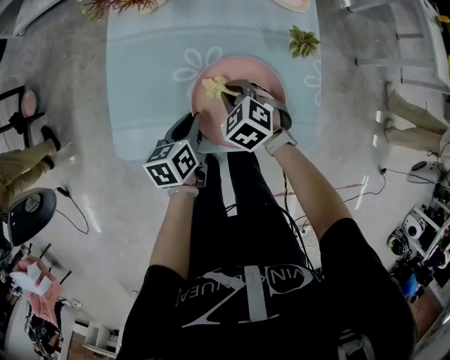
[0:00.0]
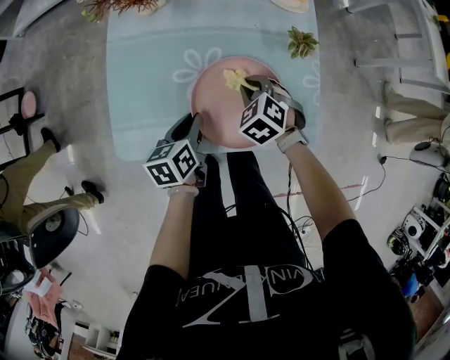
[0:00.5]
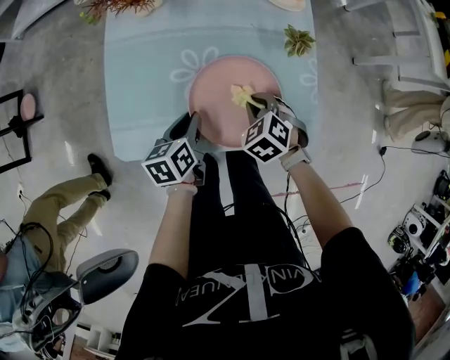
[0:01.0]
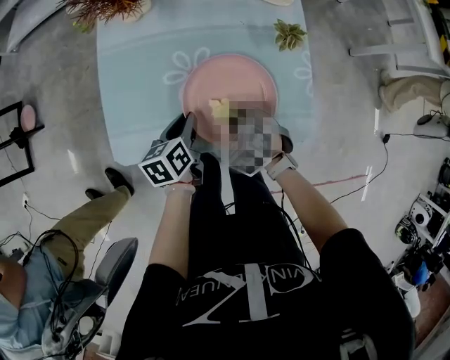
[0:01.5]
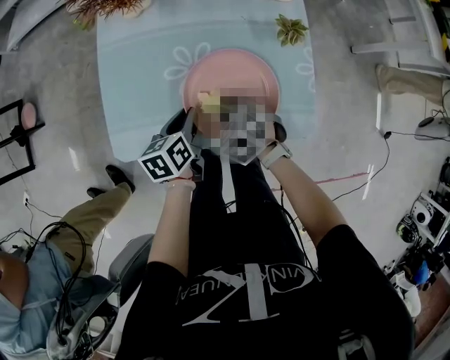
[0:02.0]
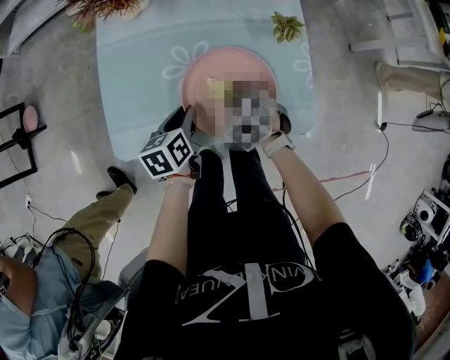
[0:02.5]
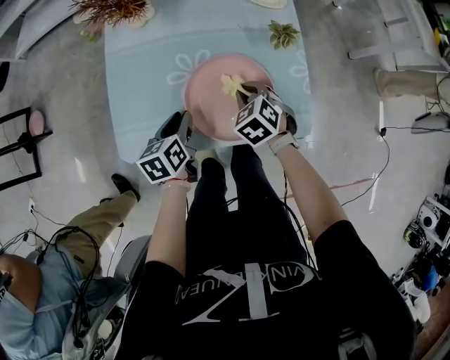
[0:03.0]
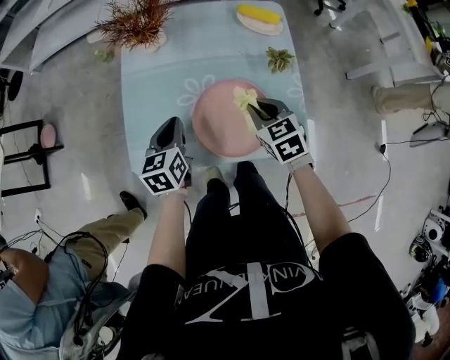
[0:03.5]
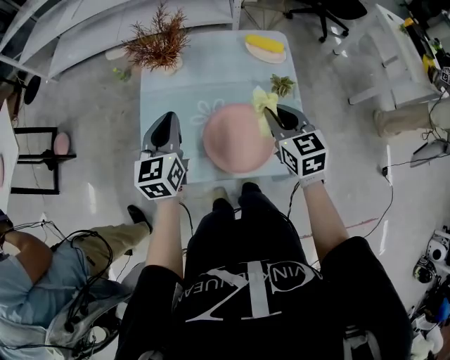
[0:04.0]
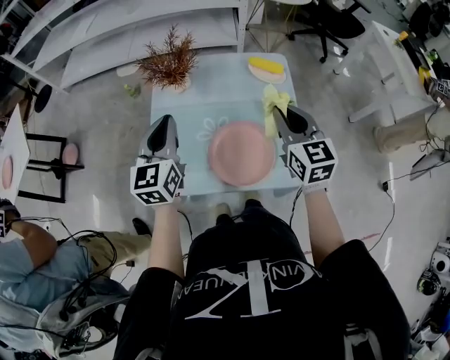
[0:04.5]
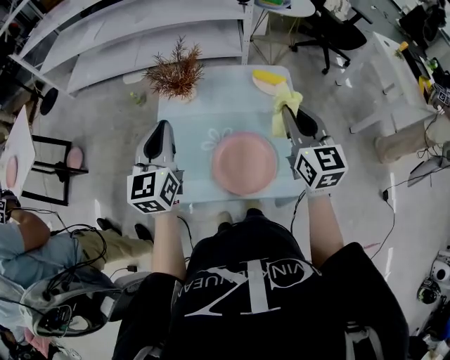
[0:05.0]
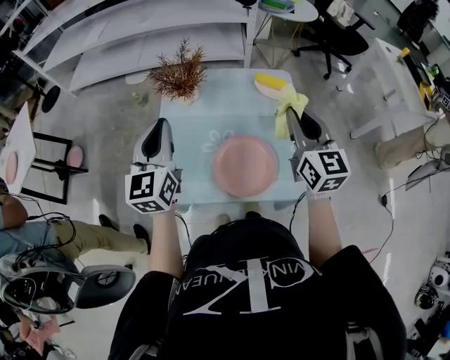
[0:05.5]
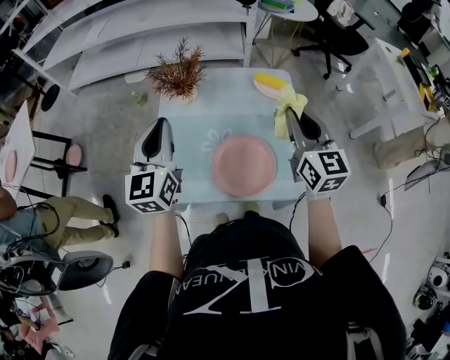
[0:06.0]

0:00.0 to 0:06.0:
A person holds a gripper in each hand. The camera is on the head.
0:00.0 to 0:02.0: The right gripper goes roughly 5 cm backward.
0:02.0 to 0:04.0: The right gripper shifts roughly 25 cm upward and to the right, and tips its fingers upward by roughly 40 degrees. Meanwhile the left gripper heads upward, covering about 25 cm, and turns by about 40 degrees.
0:04.0 to 0:06.0: Both grippers travel together upward, roughly 15 cm. The right gripper turns by some 20 degrees.

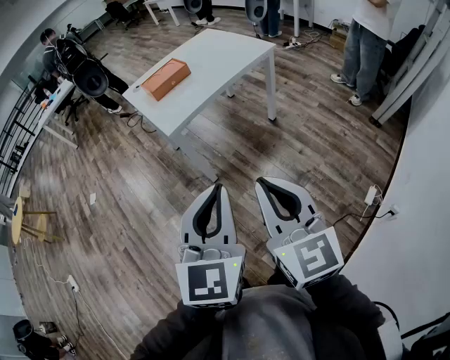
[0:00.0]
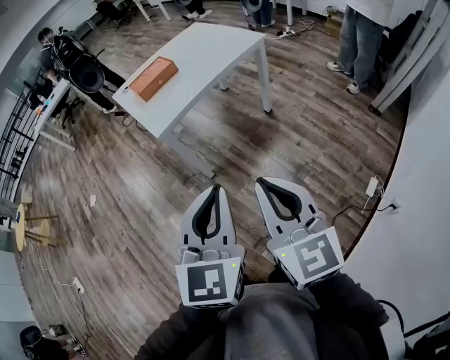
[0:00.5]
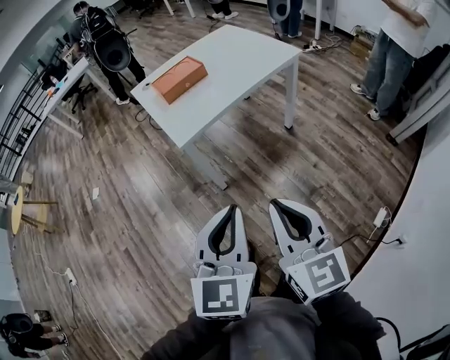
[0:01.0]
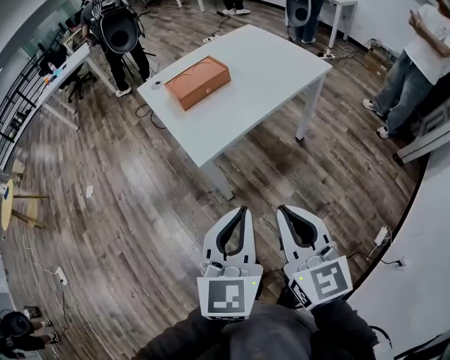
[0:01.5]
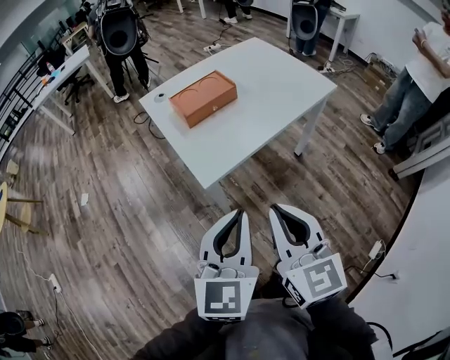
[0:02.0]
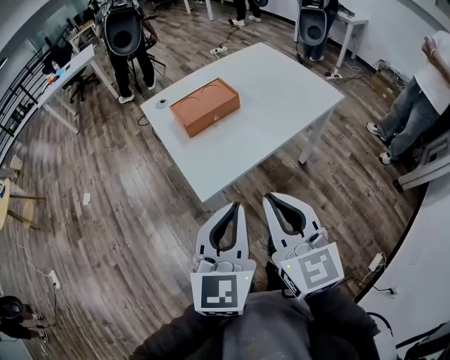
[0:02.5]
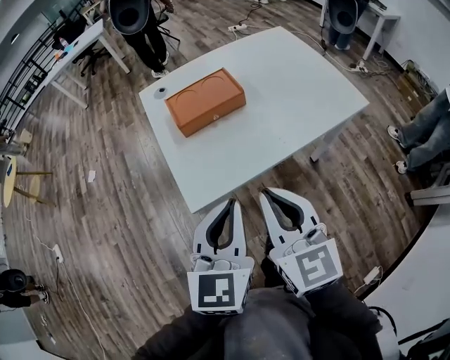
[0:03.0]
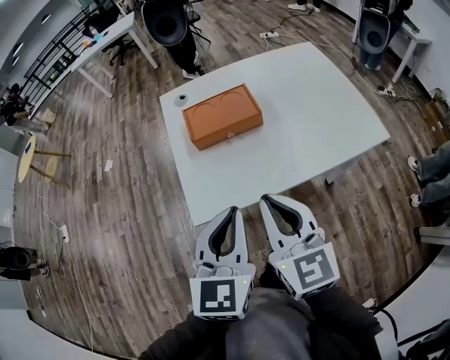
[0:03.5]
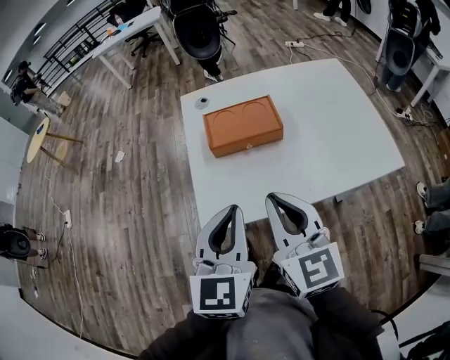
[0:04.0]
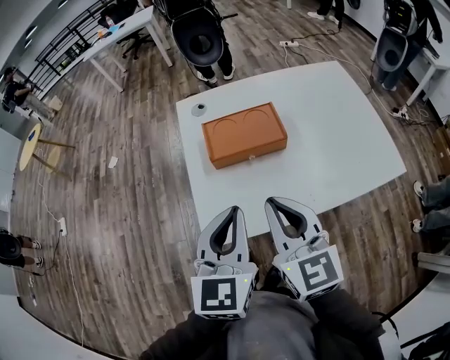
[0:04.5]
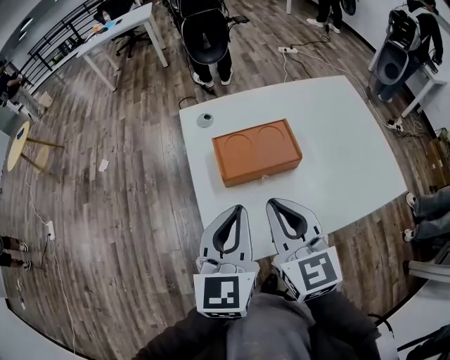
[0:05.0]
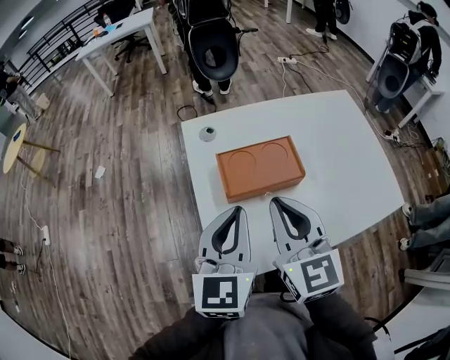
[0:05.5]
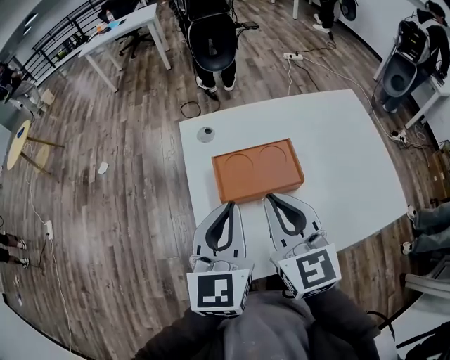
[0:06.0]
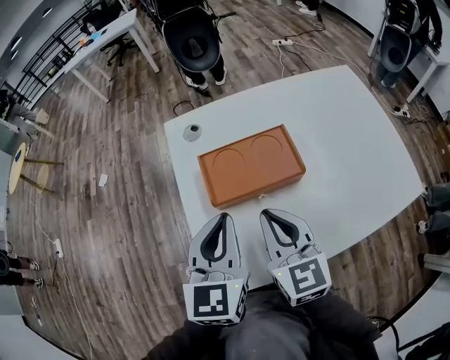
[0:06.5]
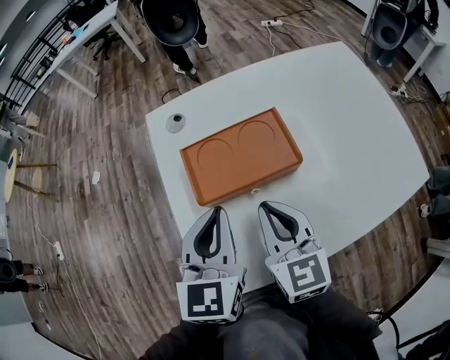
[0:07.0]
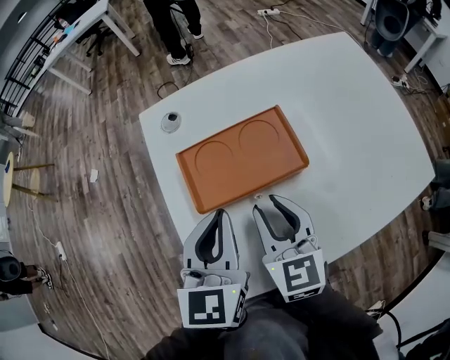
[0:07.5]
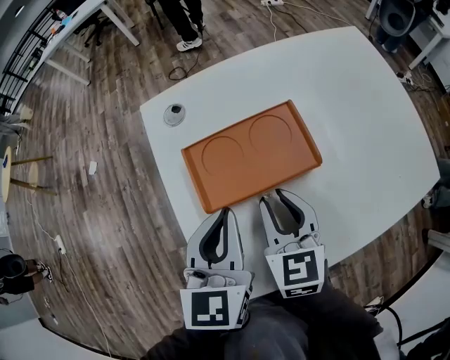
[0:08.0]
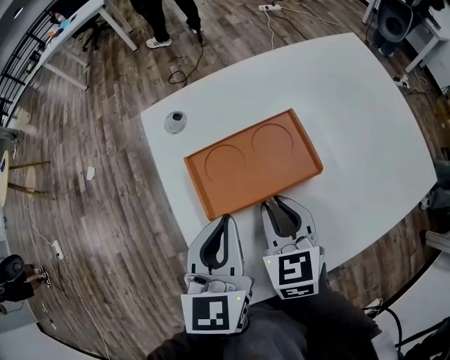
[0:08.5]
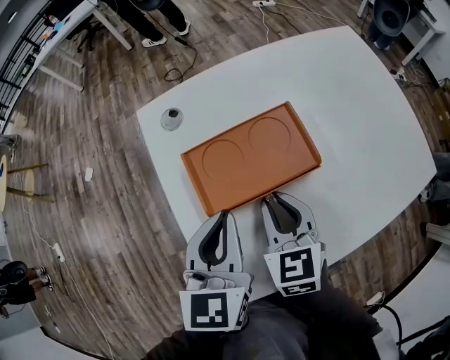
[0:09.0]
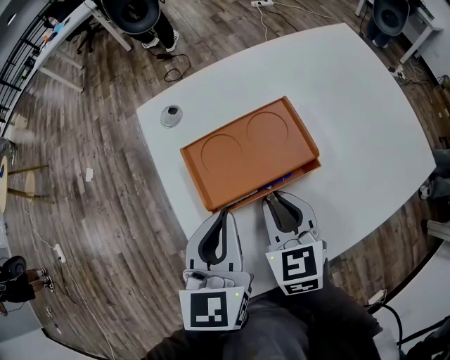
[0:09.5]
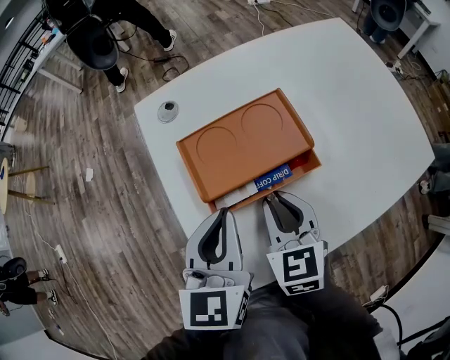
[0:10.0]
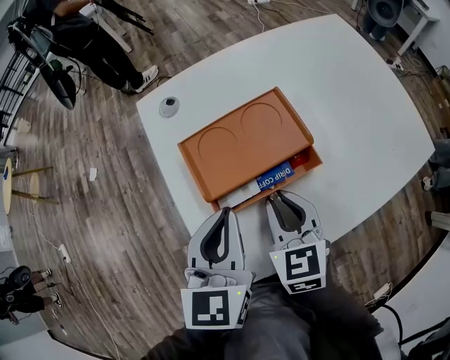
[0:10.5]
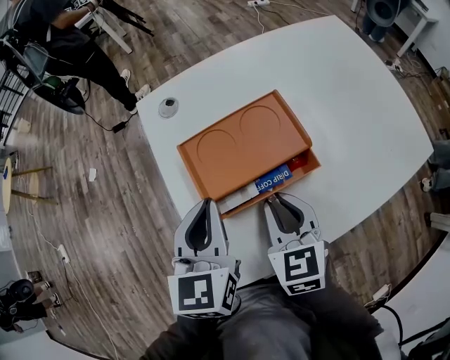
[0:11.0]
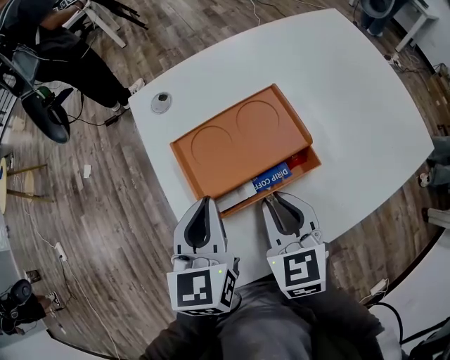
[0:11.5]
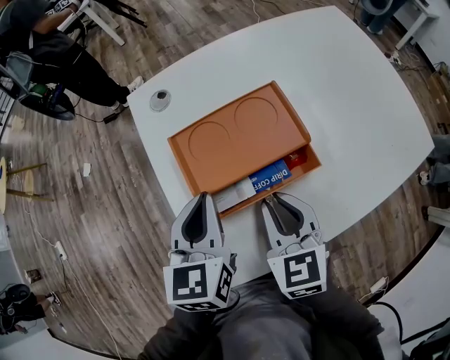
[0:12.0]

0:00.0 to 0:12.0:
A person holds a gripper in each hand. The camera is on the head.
0:00.0 to 0:02.0: The left gripper moves forward, some 25 cm. Meanwhile the right gripper goes approximately 30 cm forward and to the left.
0:02.0 to 0:04.0: The right gripper moves approximately 25 cm, and swivels some 30 degrees; the left gripper ends up about 20 cm from where it was, and changes its angle by some 30 degrees.
0:04.0 to 0:06.0: Both grippers travel together forward, some 20 cm.
0:06.0 to 0:08.0: The left gripper travels downward by approximately 10 cm; the right gripper heads downward, covering about 20 cm, rotates about 20 degrees, and opens.
0:08.0 to 0:10.0: The grippers move only a little.
0:10.0 to 0:12.0: The grippers stay close to where they were, moving slightly.

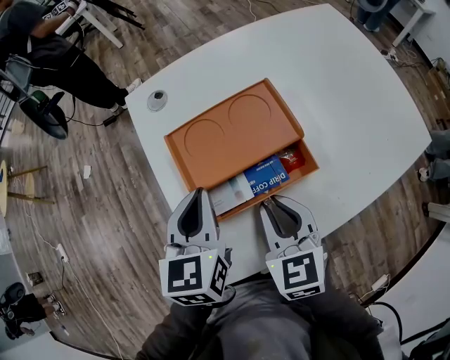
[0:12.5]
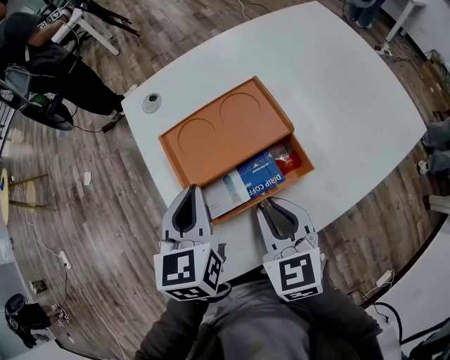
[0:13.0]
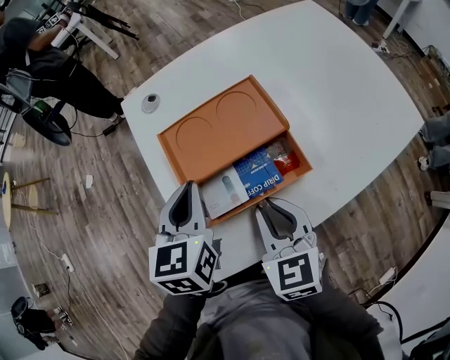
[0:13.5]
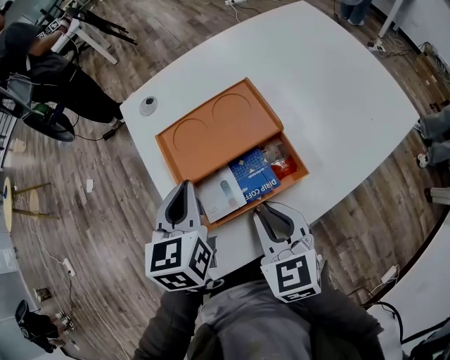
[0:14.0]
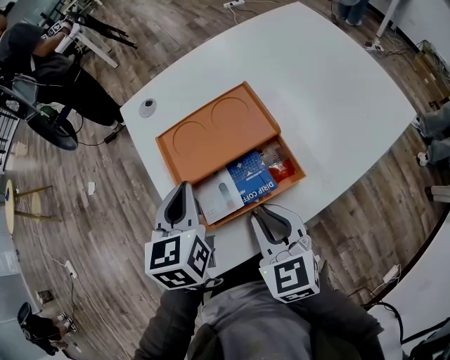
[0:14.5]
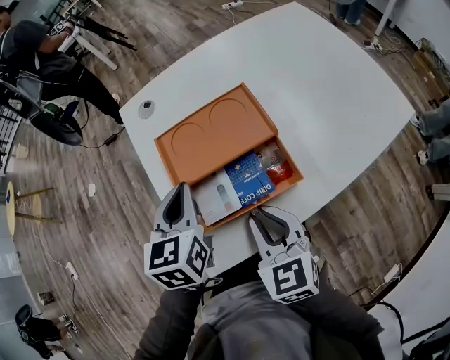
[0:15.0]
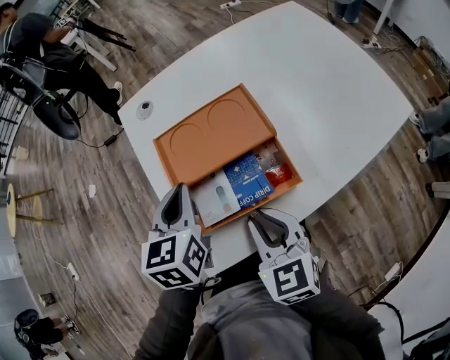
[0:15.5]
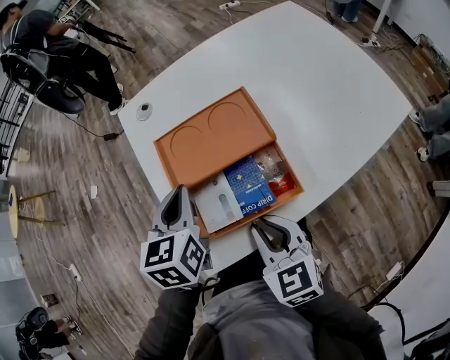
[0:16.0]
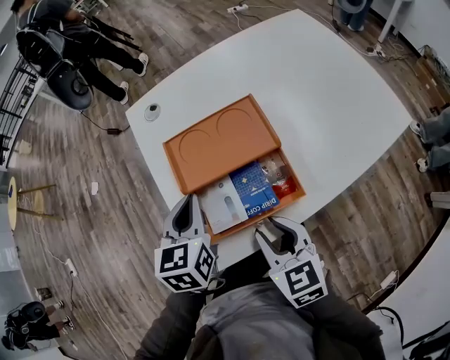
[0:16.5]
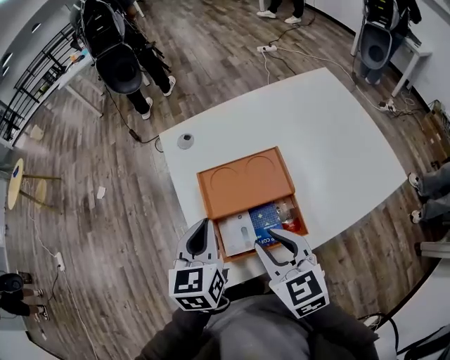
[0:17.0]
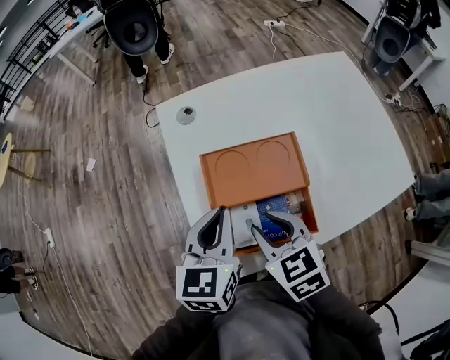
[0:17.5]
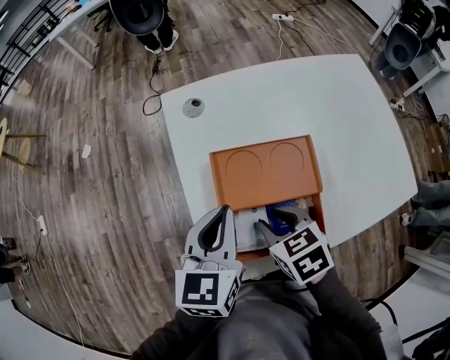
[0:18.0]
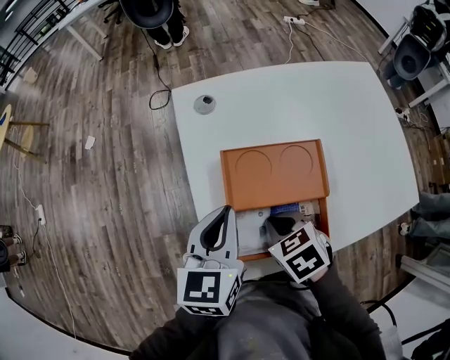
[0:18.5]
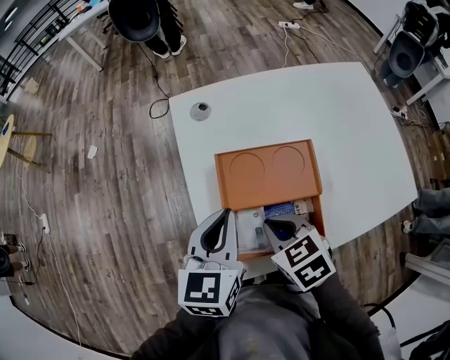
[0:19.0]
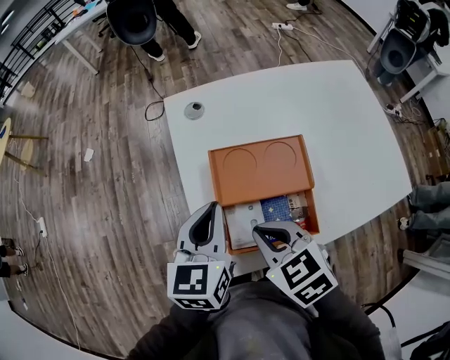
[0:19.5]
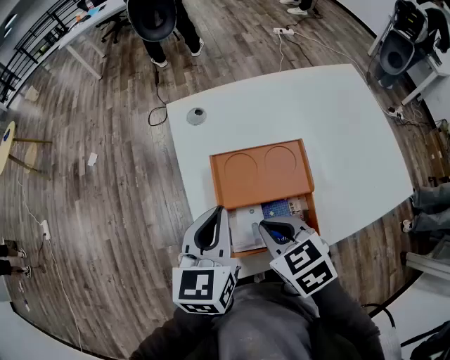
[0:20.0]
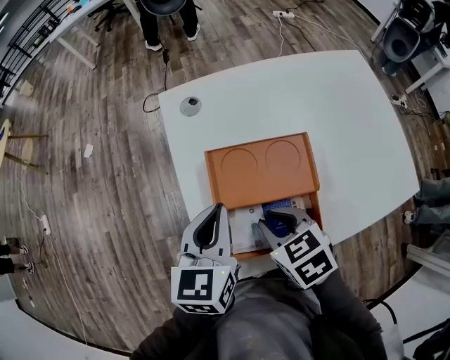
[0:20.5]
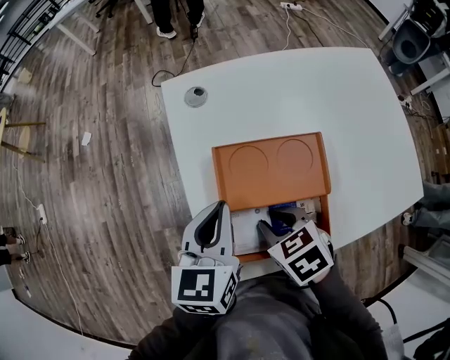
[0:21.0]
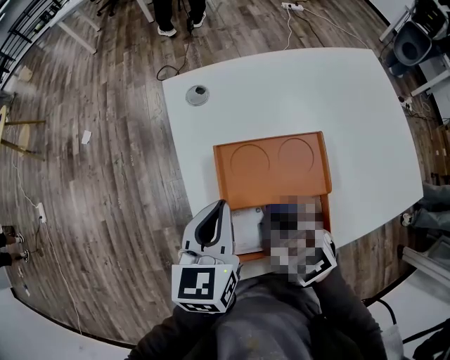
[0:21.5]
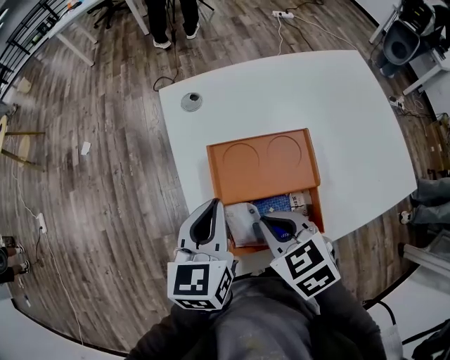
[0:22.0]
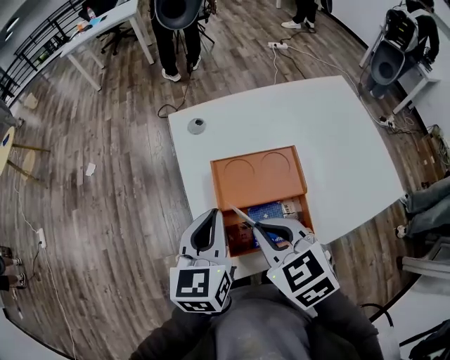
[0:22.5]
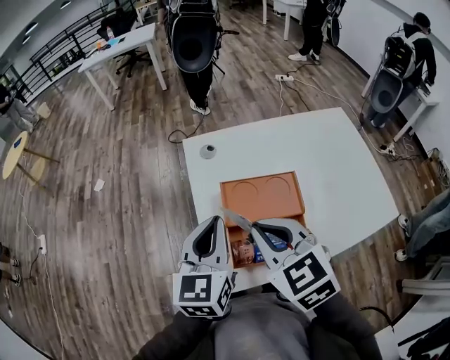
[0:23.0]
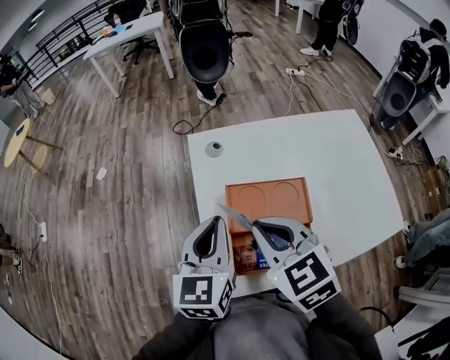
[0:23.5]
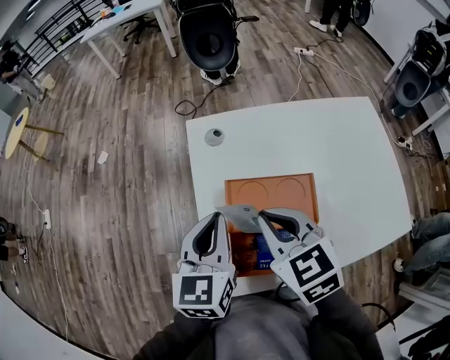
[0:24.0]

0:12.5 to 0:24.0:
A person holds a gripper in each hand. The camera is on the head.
0:12.5 to 0:14.5: The grippers move only a little.
0:14.5 to 0:16.5: The right gripper moves roughly 5 cm.
0:16.5 to 0:18.5: The right gripper moves forward, some 10 cm, travels upward and back again, about 10 cm each way, swivels about 40 degrees, and closes, while the left gripper heads upward, covering some 5 cm.
0:18.5 to 0:20.0: The right gripper travels upward by some 10 cm.
0:20.0 to 0:22.0: The right gripper opens, then closes again.
0:22.0 to 0:24.0: The left gripper goes roughly 5 cm upward; the right gripper heads upward and forward, covering approximately 15 cm.
